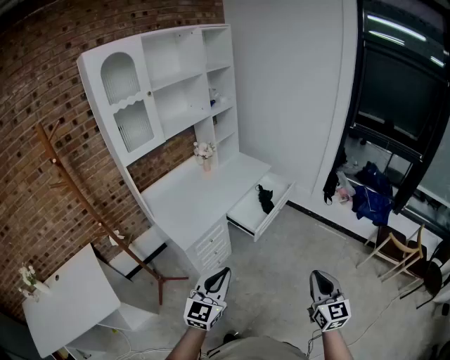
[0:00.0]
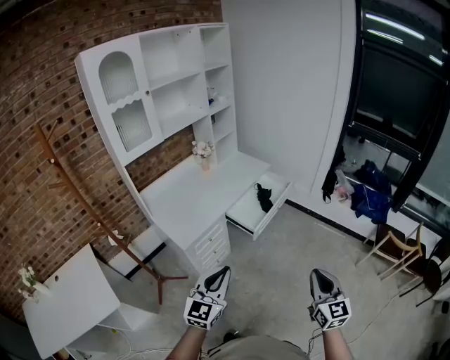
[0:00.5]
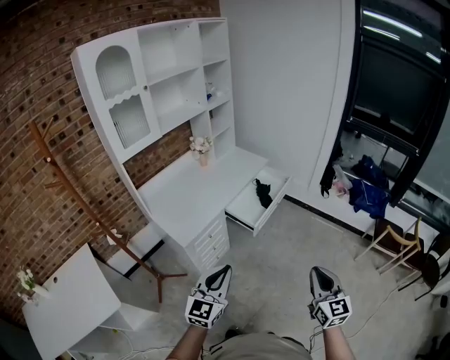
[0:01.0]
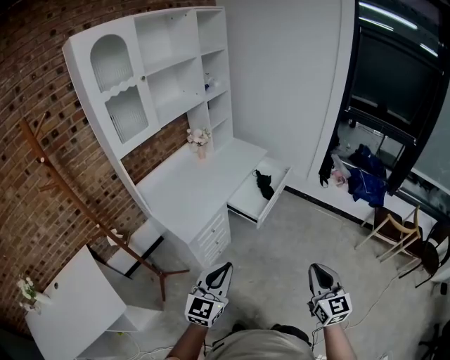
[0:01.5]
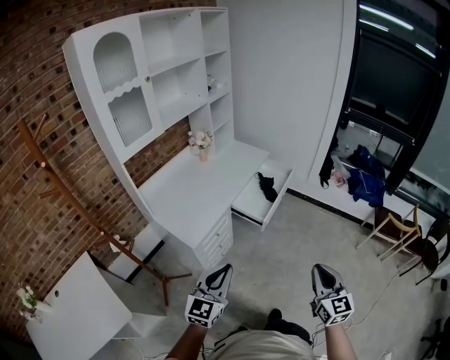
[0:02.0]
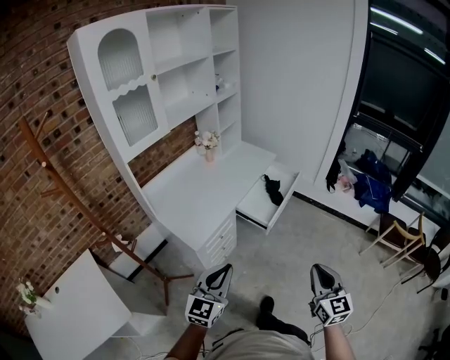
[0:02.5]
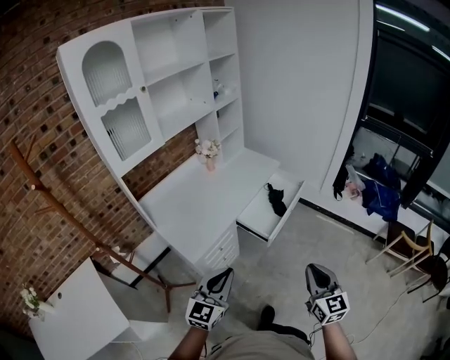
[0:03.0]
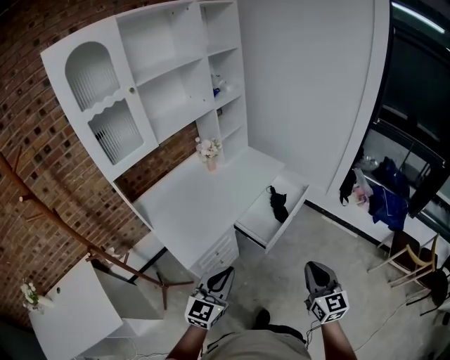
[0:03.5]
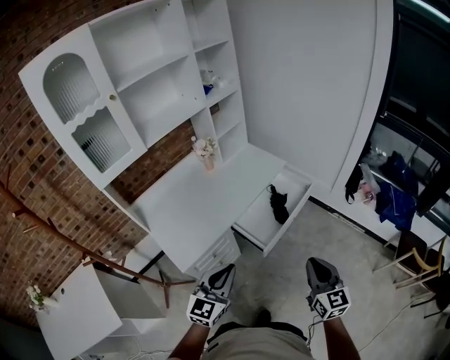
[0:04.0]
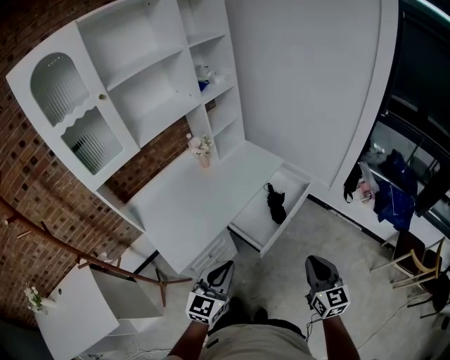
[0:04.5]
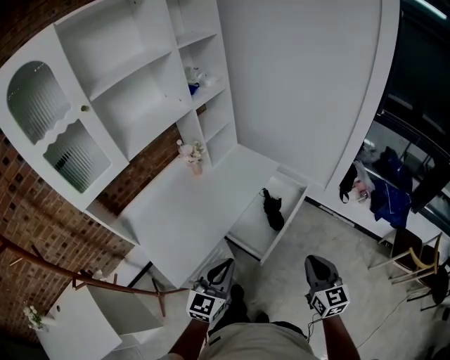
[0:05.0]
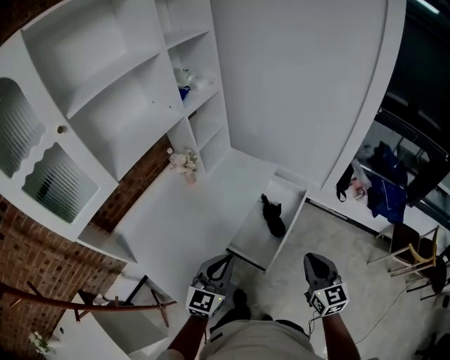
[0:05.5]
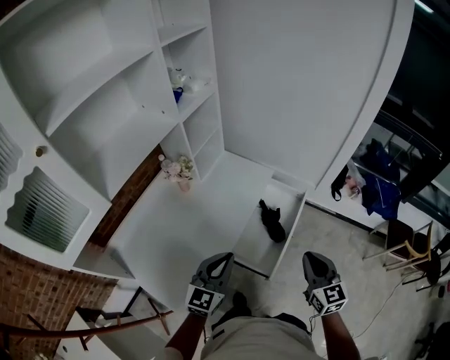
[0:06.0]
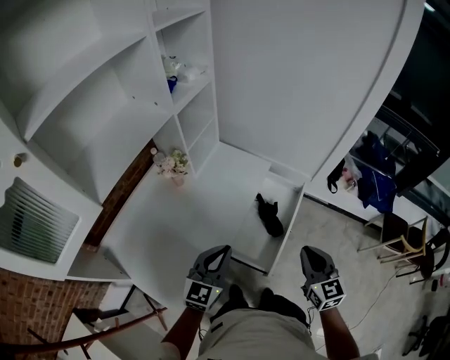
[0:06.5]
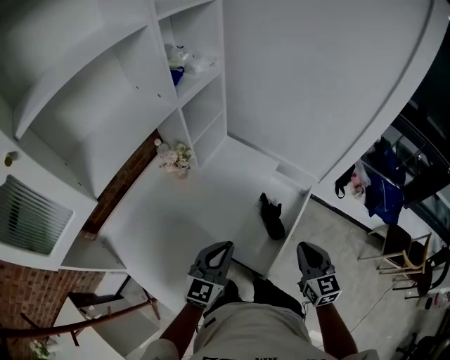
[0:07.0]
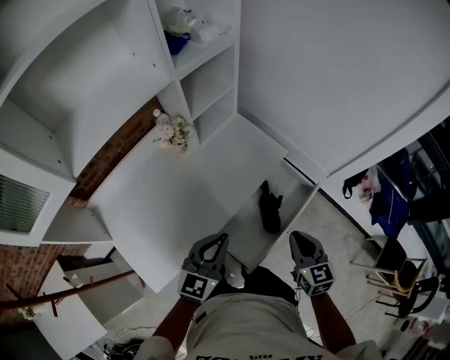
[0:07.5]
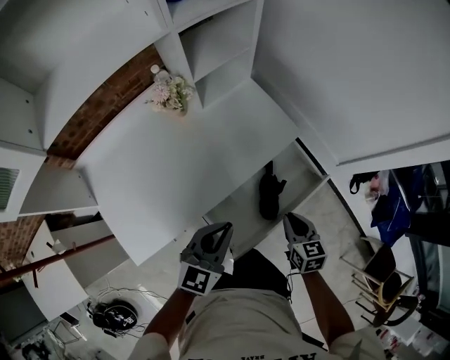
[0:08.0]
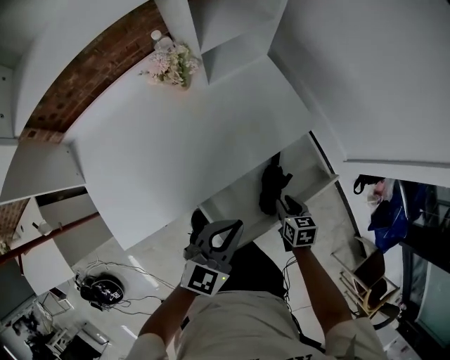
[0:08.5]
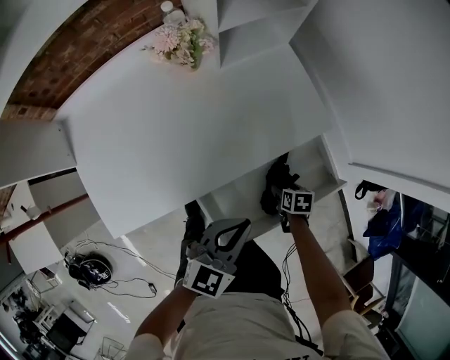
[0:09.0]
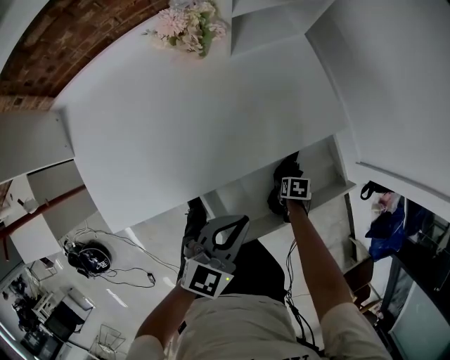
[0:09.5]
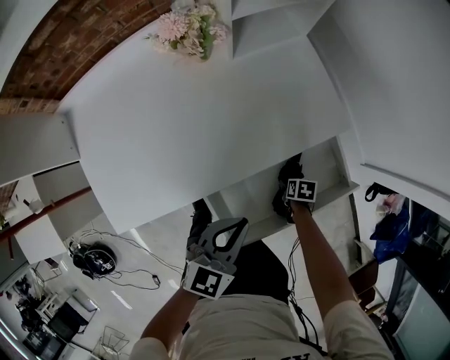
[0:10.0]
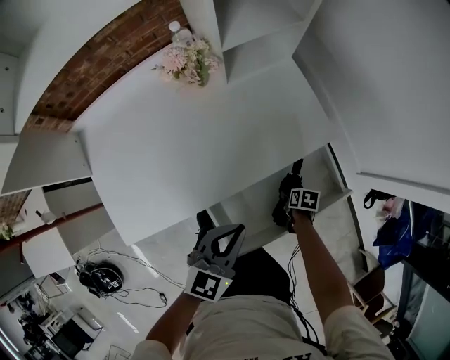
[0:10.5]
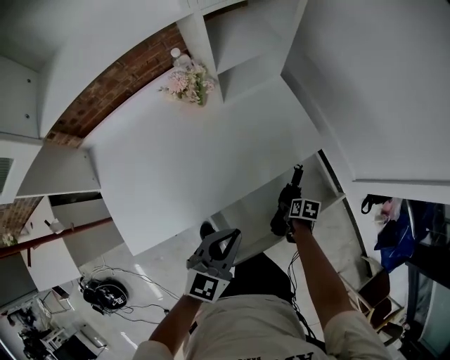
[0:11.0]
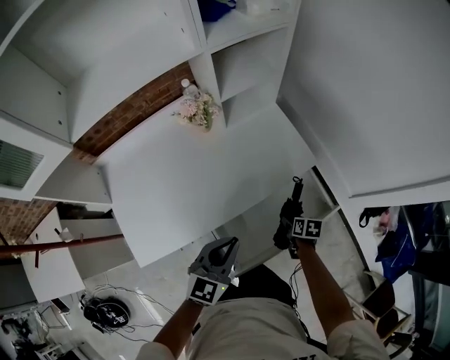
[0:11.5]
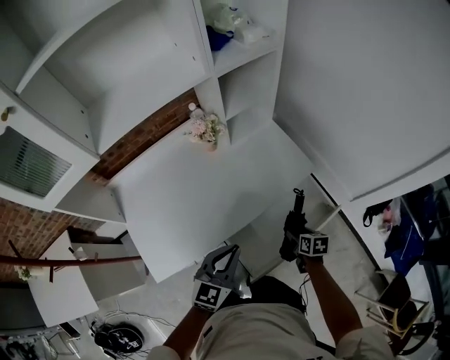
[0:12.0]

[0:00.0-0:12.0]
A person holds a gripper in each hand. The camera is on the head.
0:00.0 to 0:02.0: Both grippers travel together to the left, roughly 10 cm.
0:02.0 to 0:04.0: Both grippers travel together forward, roughly 25 cm.
0:04.0 to 0:06.0: The left gripper heads forward, covering roughly 25 cm. The right gripper heads forward and to the left, covering some 20 cm.
0:06.0 to 0:08.0: The left gripper moves forward, downward and to the right, some 20 cm, and rotates approximately 20 degrees. The right gripper travels downward and forward by approximately 30 cm, and swivels approximately 40 degrees.
0:08.0 to 0:10.0: The right gripper moves downward, roughly 30 cm, points its fingers roughly 40 degrees further downward, and opens up; the left gripper shifts approximately 10 cm downward.
0:10.0 to 0:12.0: The right gripper is displaced upward by roughly 25 cm, and changes its angle by roughly 30 degrees. The left gripper is displaced upward by about 10 cm.

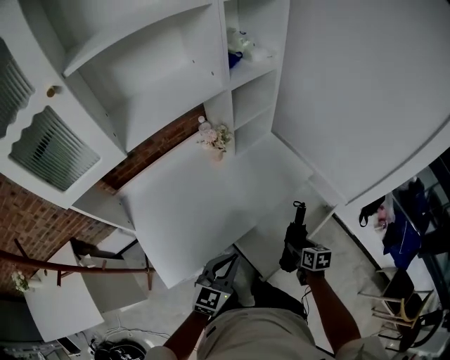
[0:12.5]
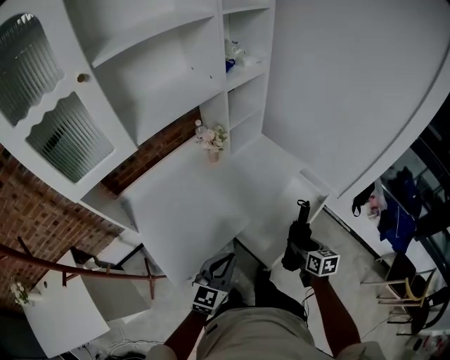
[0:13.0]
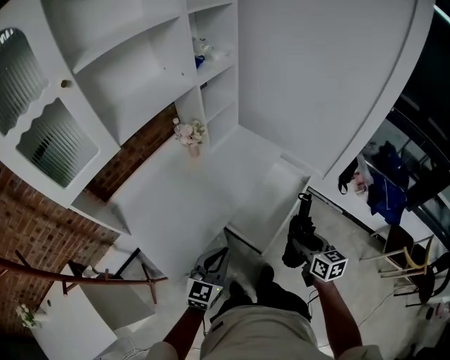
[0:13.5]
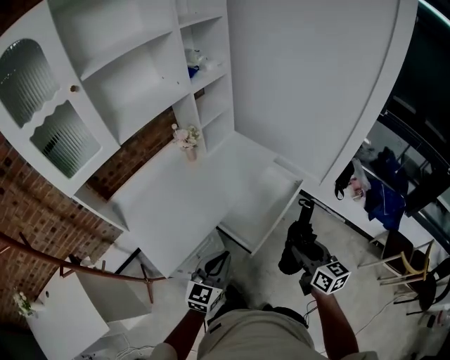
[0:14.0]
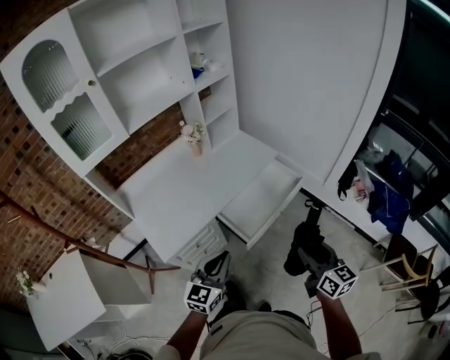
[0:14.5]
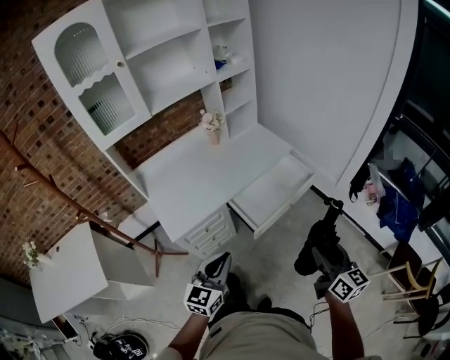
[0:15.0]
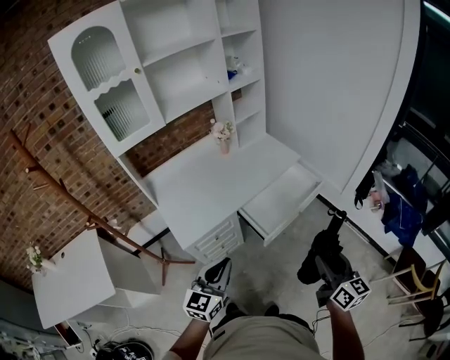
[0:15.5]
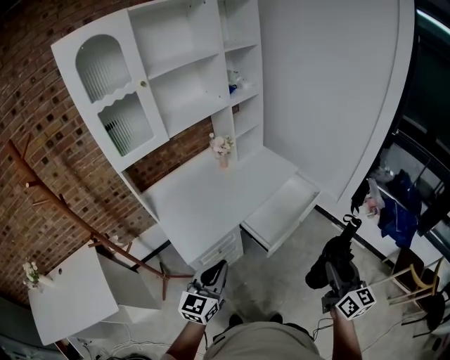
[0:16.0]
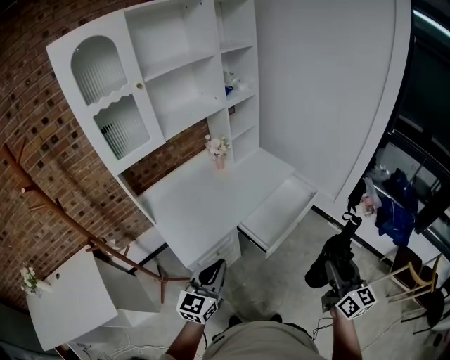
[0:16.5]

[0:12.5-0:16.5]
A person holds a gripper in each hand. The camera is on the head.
0:12.5 to 0:14.5: The right gripper moves backward and upward, approximately 35 cm, and tilts its fingers about 40 degrees upward. The left gripper is displaced backward by about 20 cm.
0:14.5 to 0:16.5: The right gripper shifts roughly 10 cm backward and upward. The left gripper heads to the left, upward and backward, covering some 15 cm.

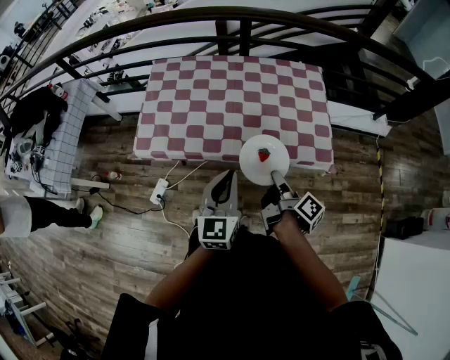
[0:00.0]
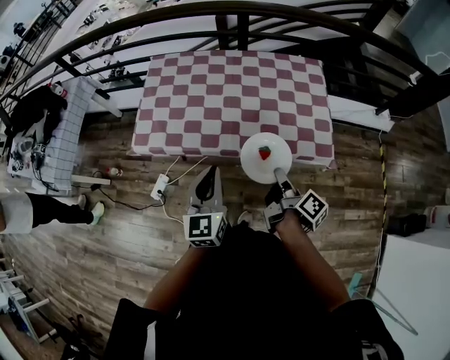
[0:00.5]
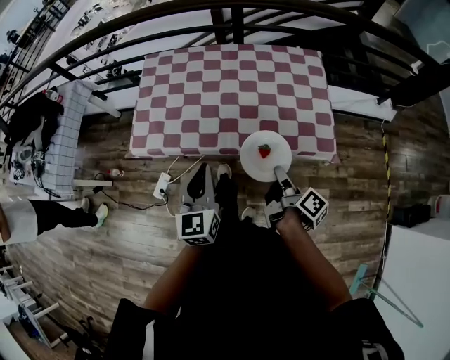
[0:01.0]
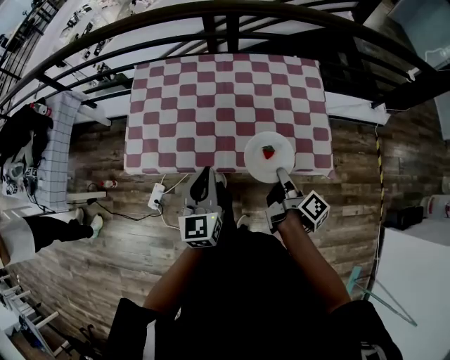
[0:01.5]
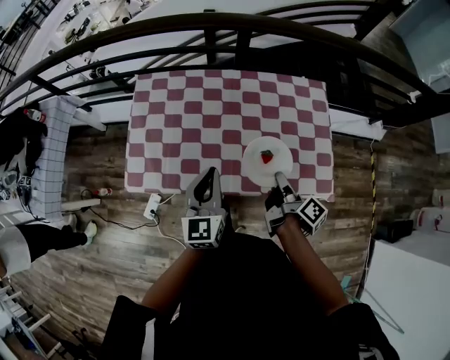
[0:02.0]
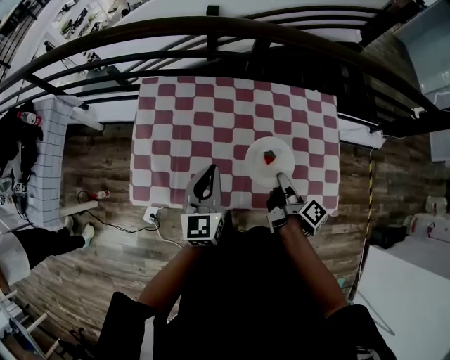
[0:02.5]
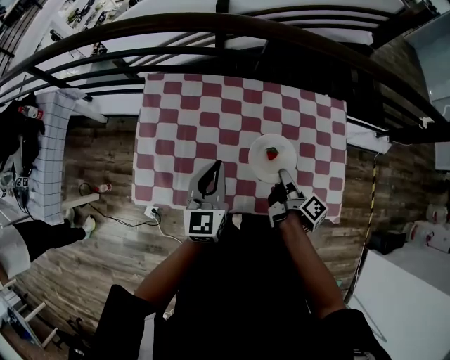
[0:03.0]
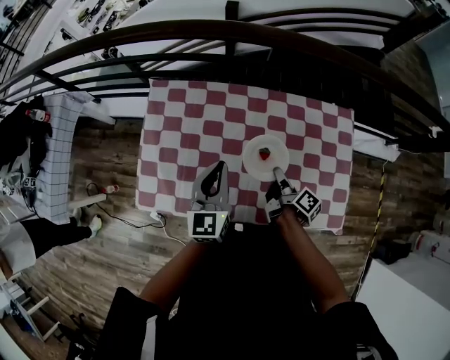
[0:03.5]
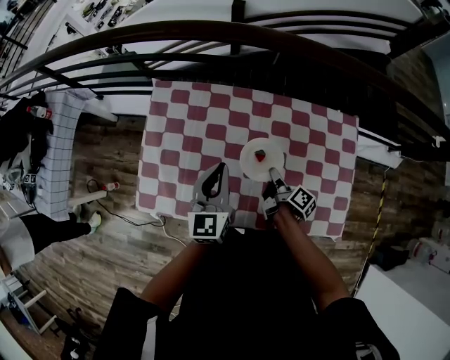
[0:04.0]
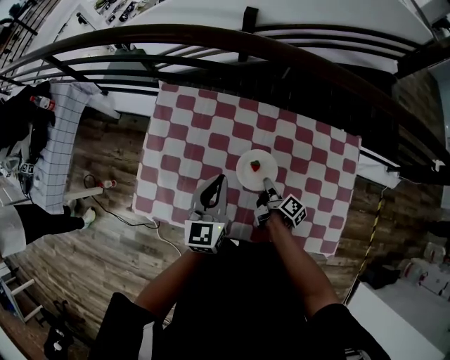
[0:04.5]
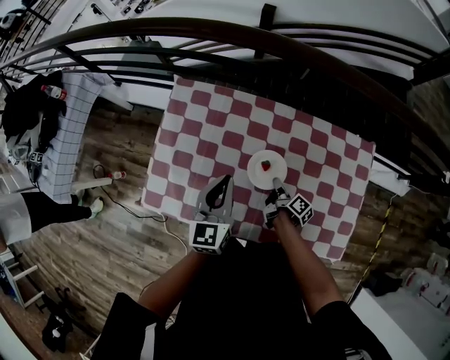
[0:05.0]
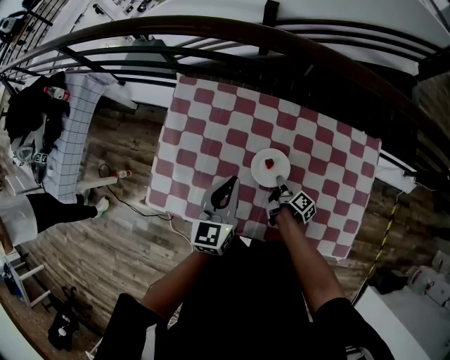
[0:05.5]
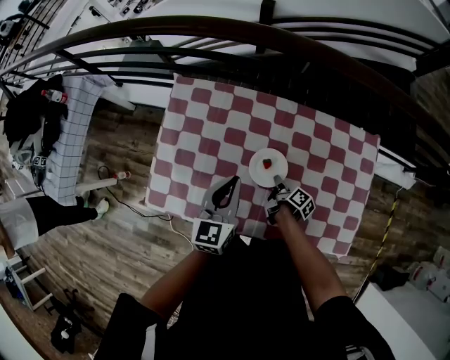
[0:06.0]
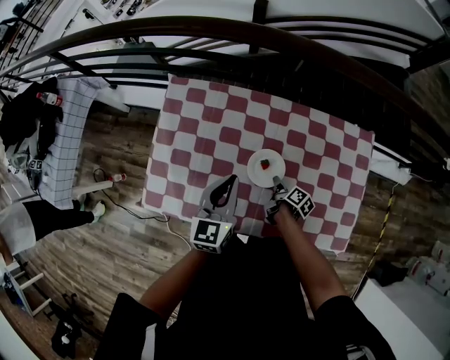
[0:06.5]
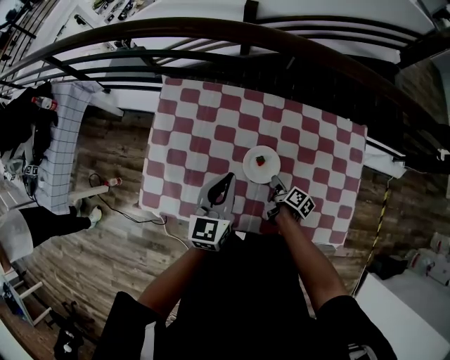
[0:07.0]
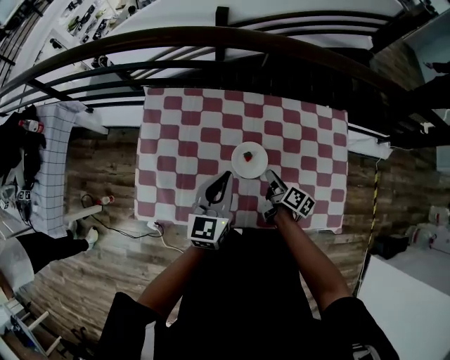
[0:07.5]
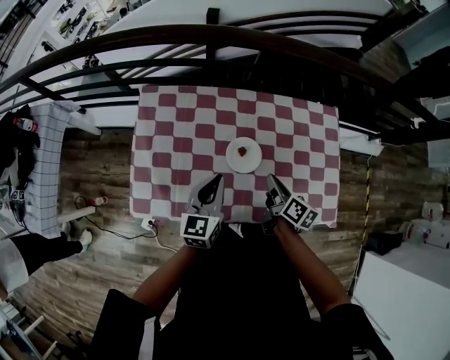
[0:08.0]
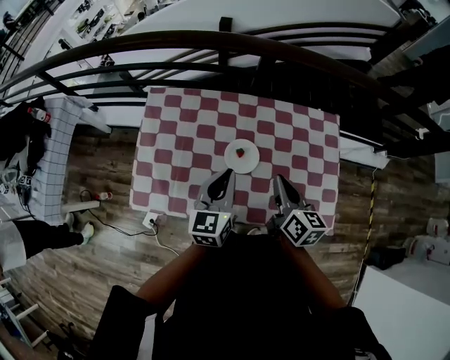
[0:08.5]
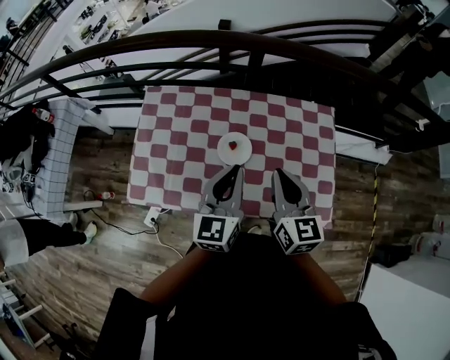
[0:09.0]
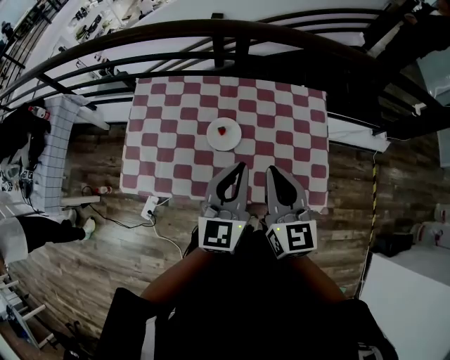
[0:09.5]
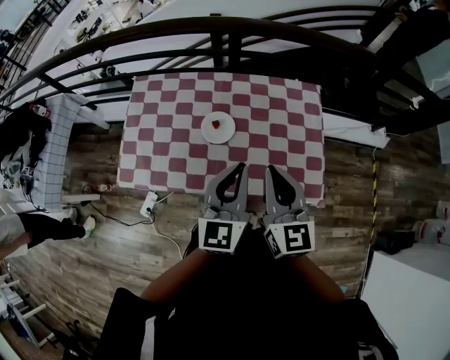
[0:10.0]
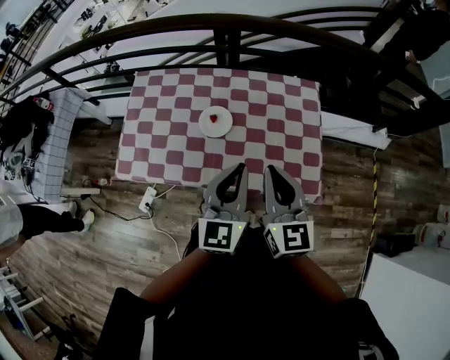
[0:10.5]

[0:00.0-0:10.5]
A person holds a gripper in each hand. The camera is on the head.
0:00.0 to 0:02.0: Both grippers move forward, some 20 cm.
0:02.0 to 0:04.0: The left gripper is displaced forward by approximately 20 cm. The right gripper travels forward and downward by roughly 25 cm.
0:04.0 to 0:06.5: The right gripper goes some 10 cm downward, and opens its fingers.
0:06.5 to 0:08.5: The left gripper shifts approximately 10 cm backward, to the right and upward; the right gripper is displaced upward by some 30 cm, rotates around the line of its fingers by roughly 40 degrees, counterclockwise from behind, and closes.
0:08.5 to 0:10.5: The right gripper travels backward, upward and to the right by some 20 cm, and rotates about 30 degrees. Meanwhile the left gripper goes approximately 25 cm to the right, backward and upward.
